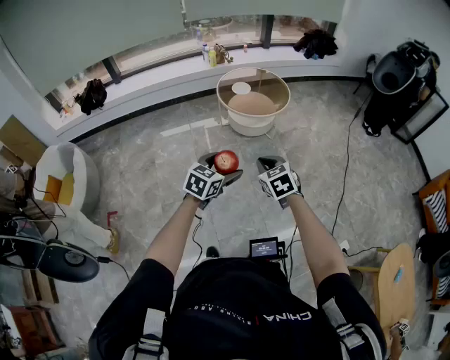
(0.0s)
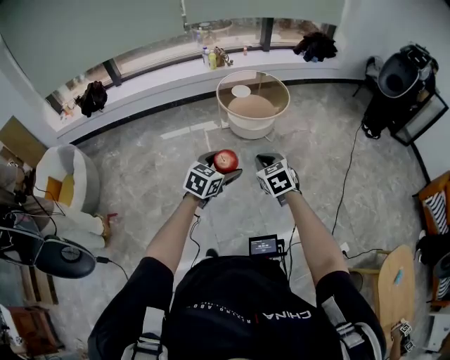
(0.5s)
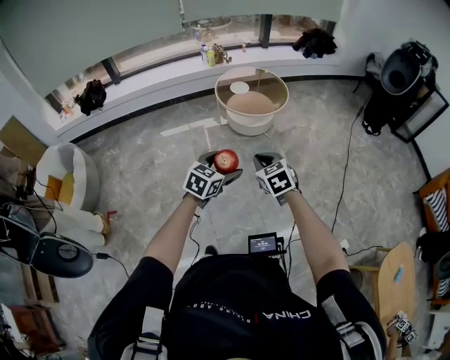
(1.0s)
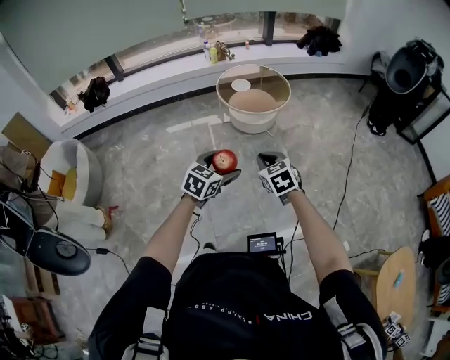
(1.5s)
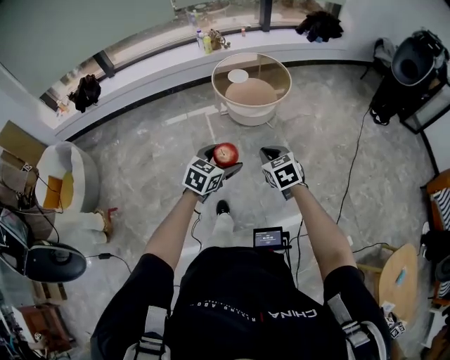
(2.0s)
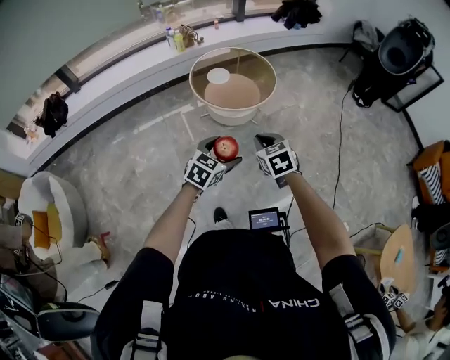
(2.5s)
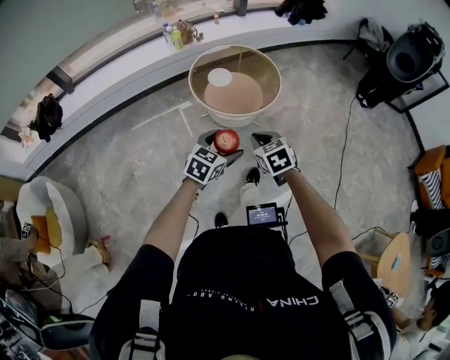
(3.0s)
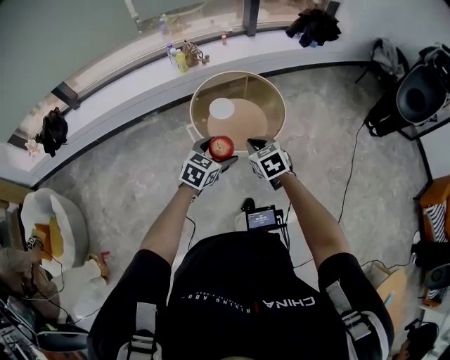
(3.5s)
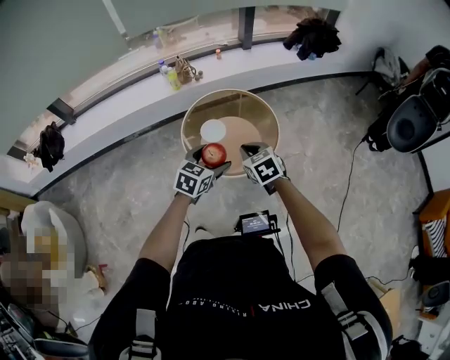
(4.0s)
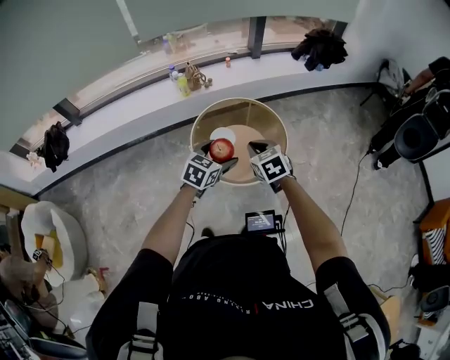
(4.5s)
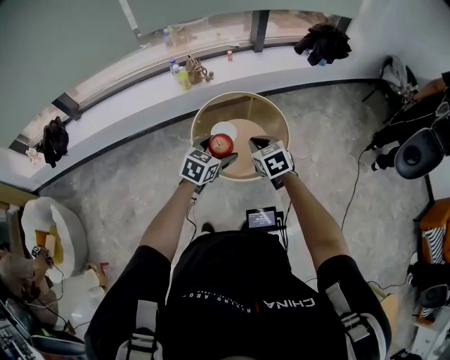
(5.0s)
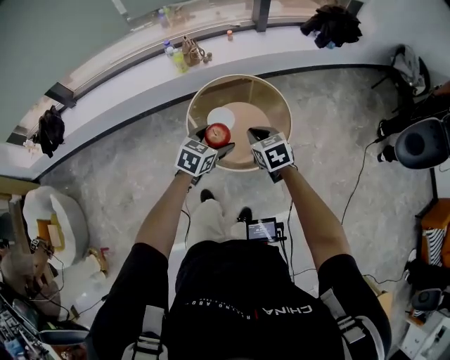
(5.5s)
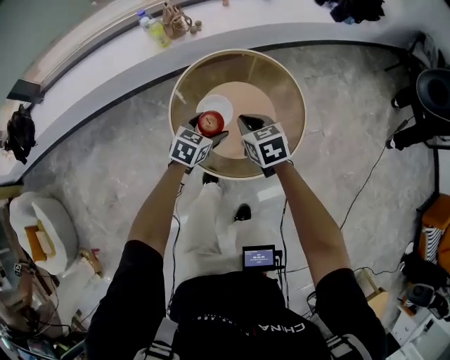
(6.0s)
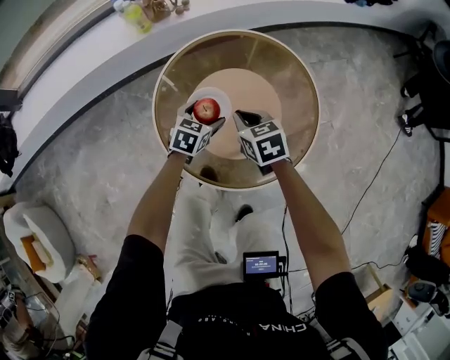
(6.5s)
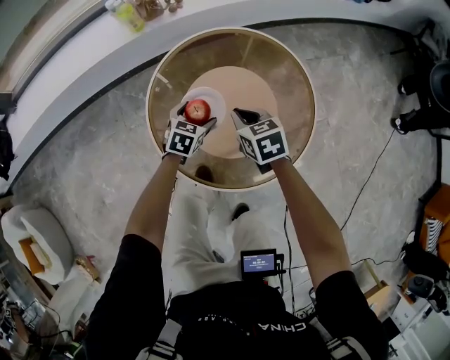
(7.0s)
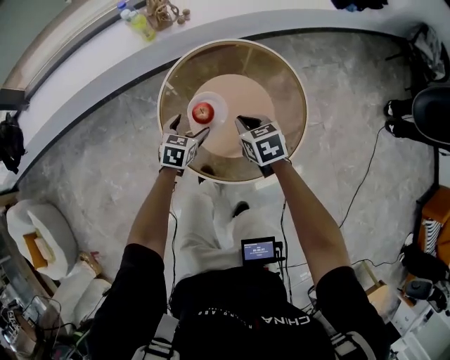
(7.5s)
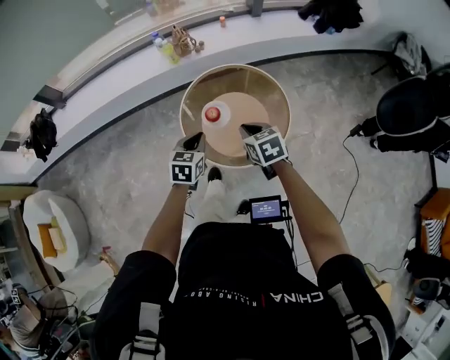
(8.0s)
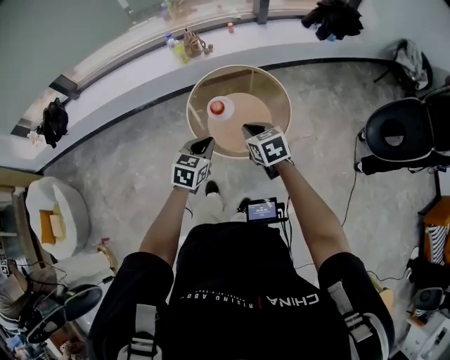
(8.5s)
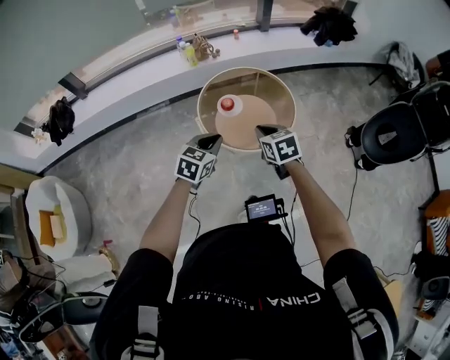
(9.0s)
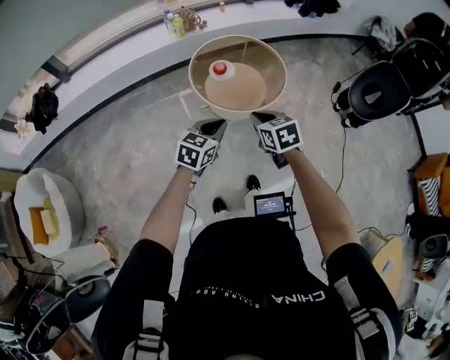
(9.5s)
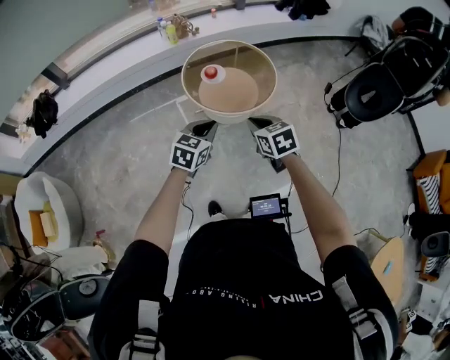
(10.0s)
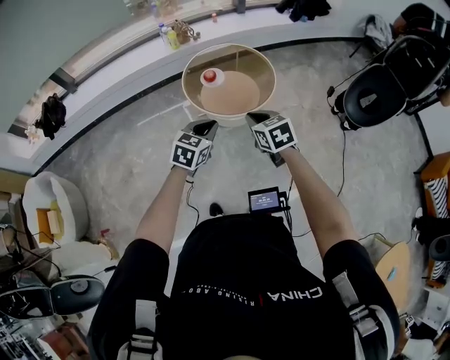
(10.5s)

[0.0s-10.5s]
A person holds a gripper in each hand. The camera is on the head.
0.0s to 2.0s: The right gripper goes approximately 10 cm forward and to the right; the left gripper shifts about 10 cm forward.
2.0s to 4.0s: Both grippers are carried forward, approximately 60 cm.
4.0s to 6.5s: Both grippers move downward and forward, roughly 60 cm.
6.5s to 8.5s: Both grippers move upward and backward, about 50 cm. The left gripper closes up.
8.5s to 10.5s: Both grippers travel together backward, roughly 25 cm.

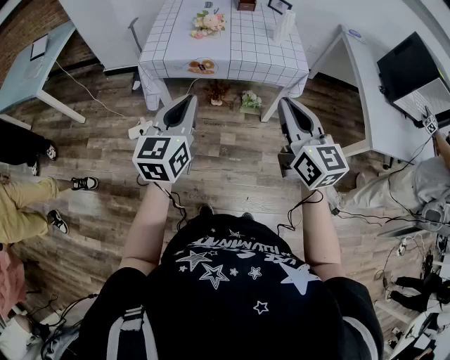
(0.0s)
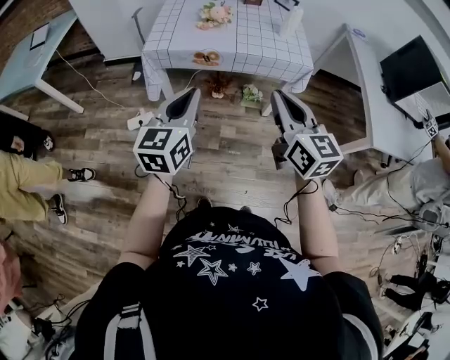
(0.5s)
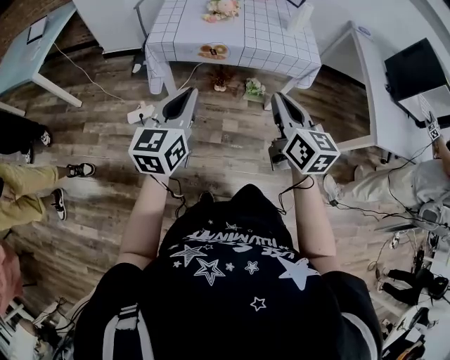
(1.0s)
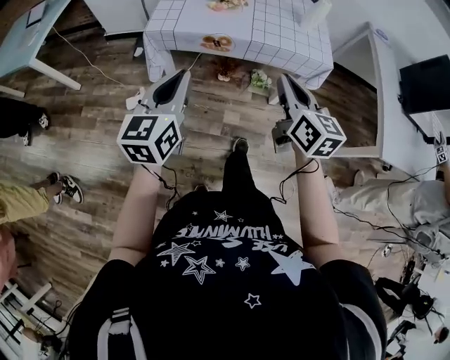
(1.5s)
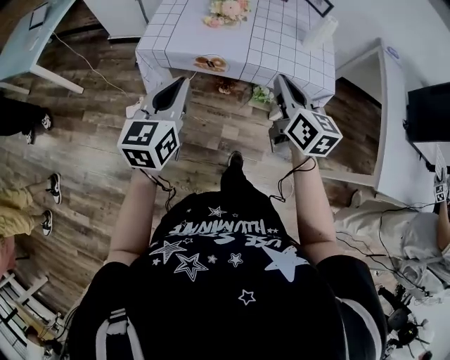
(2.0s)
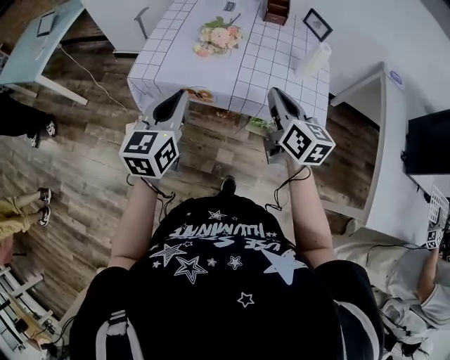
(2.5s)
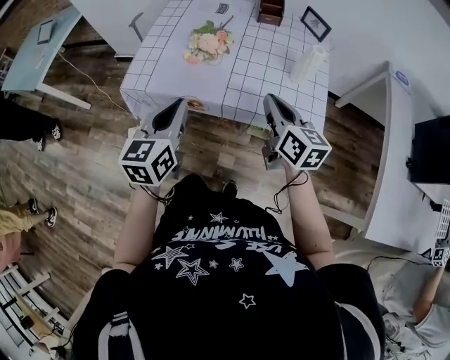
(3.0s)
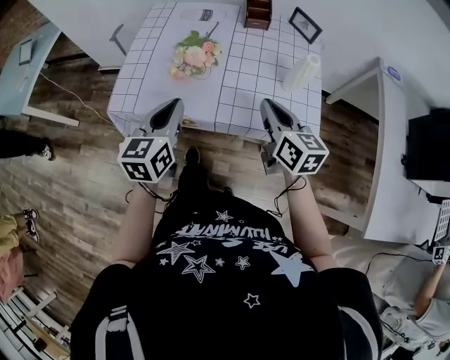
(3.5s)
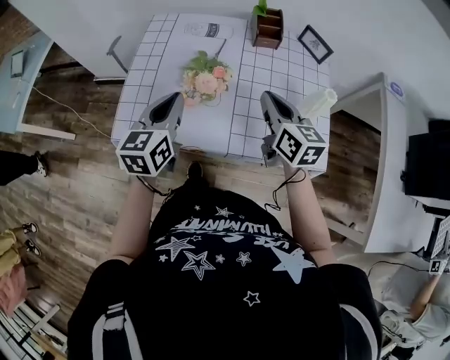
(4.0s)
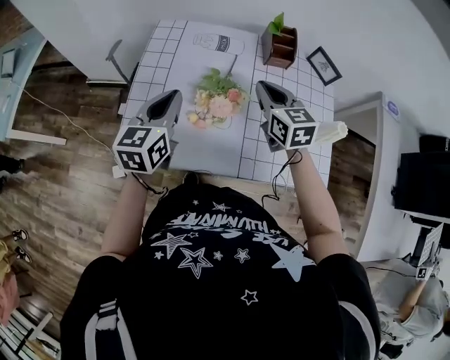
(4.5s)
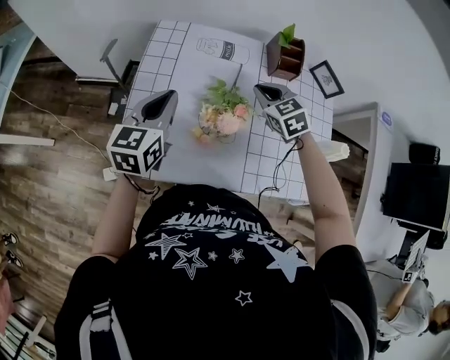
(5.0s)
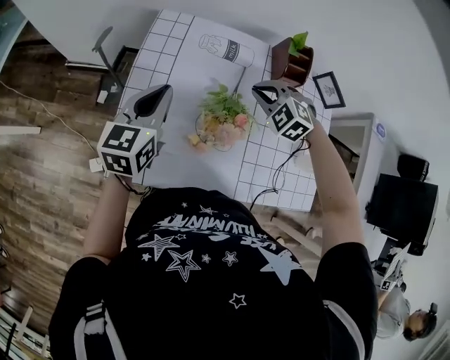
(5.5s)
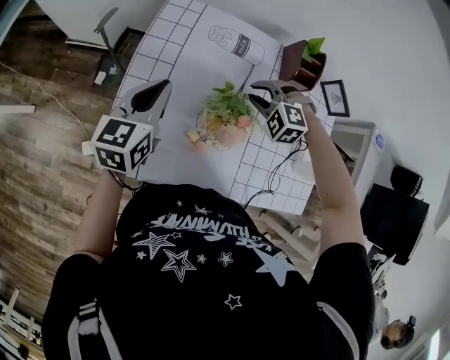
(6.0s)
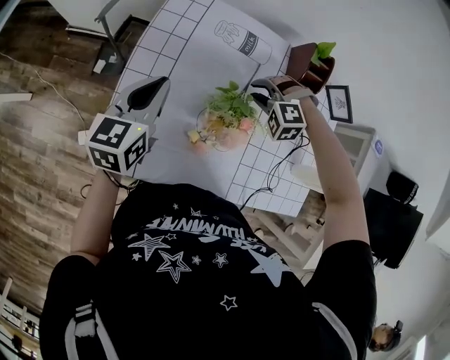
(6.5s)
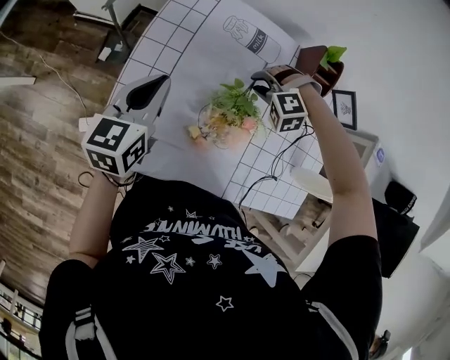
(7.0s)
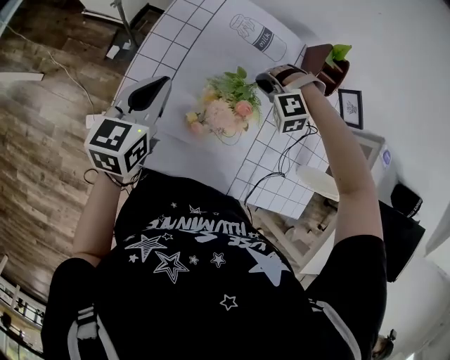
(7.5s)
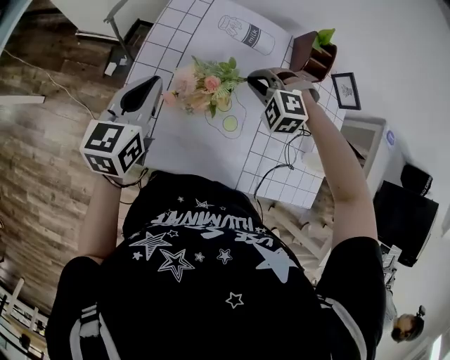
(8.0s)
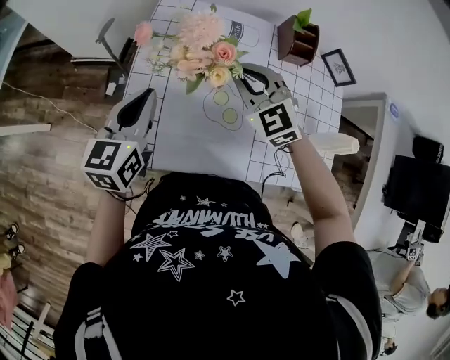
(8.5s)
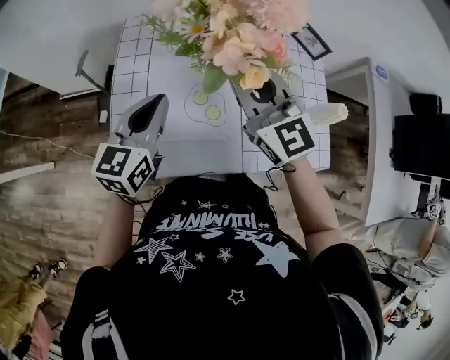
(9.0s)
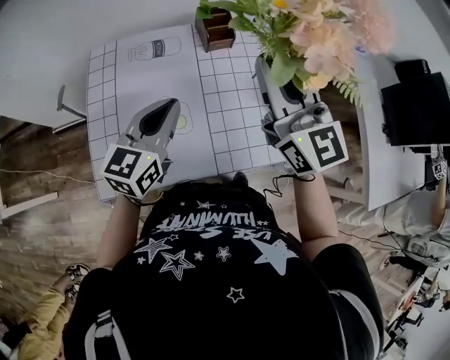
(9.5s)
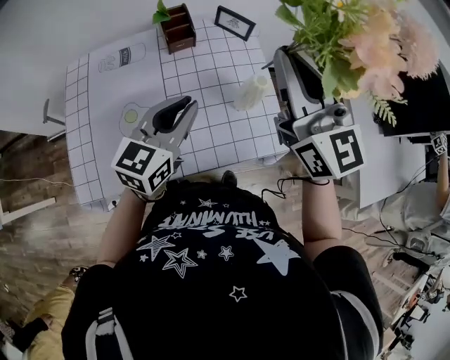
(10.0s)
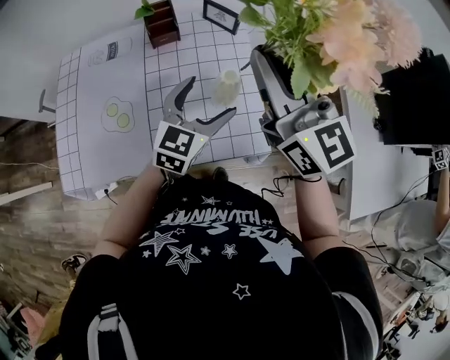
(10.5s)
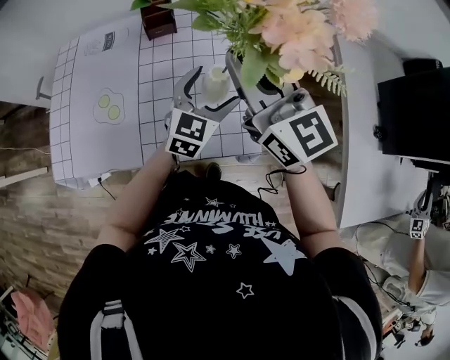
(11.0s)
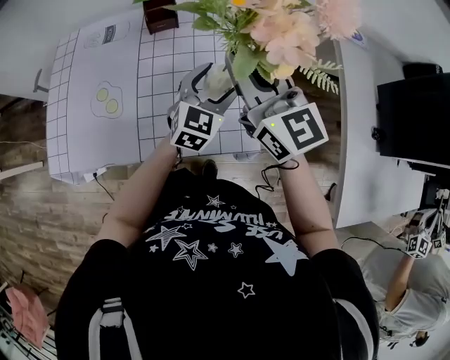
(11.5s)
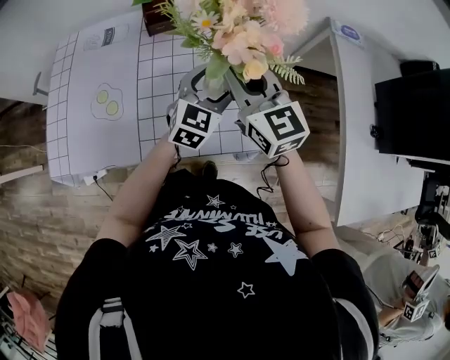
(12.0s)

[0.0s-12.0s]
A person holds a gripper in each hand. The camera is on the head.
0.0s to 2.0s: Both grippers travel together forward, approximately 20 cm.
2.0s to 4.0s: The grippers both shift forward by about 30 cm.
4.0s to 6.0s: The left gripper moves forward and to the left, roughly 20 cm, while the right gripper travels forward, downward and to the left by some 25 cm, twists about 90 degrees counterclockwise, seen from behind, and opens up.
8.0s to 10.0s: The left gripper changes place by about 40 cm, and rotates about 40 degrees; the right gripper shifts approximately 35 cm upward, and tips its fingers upward by roughly 70 degrees.
10.0s to 12.0s: The right gripper travels downward by about 15 cm, and turns by approximately 20 degrees. The left gripper heads to the right and downward, covering approximately 20 cm, swivels approximately 20 degrees, and opens.

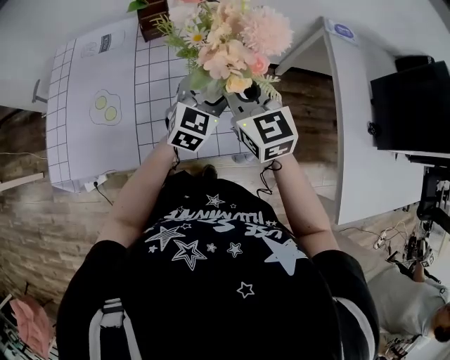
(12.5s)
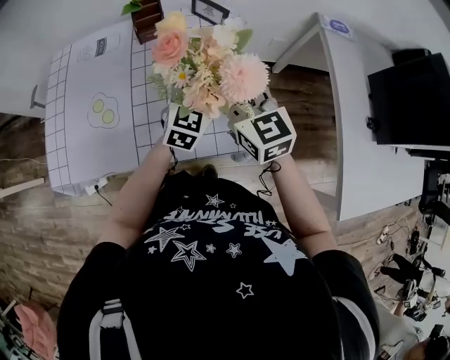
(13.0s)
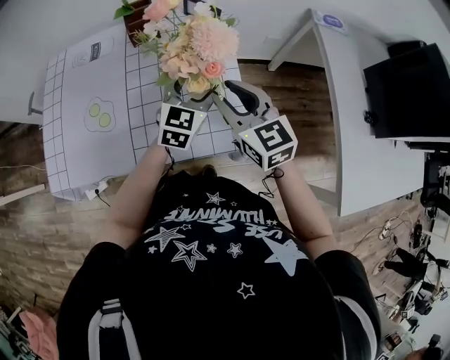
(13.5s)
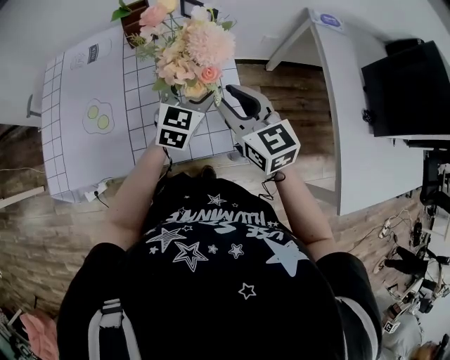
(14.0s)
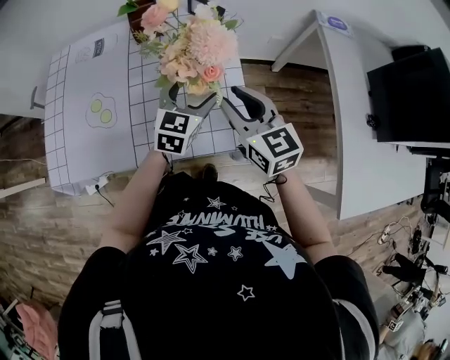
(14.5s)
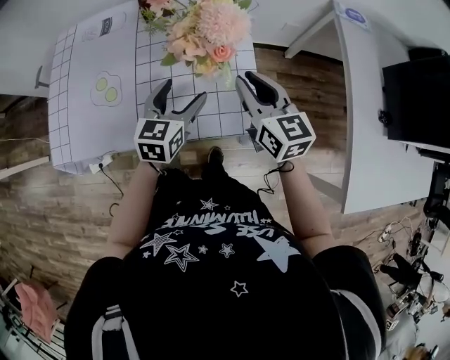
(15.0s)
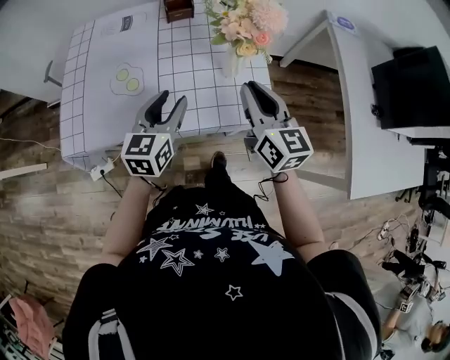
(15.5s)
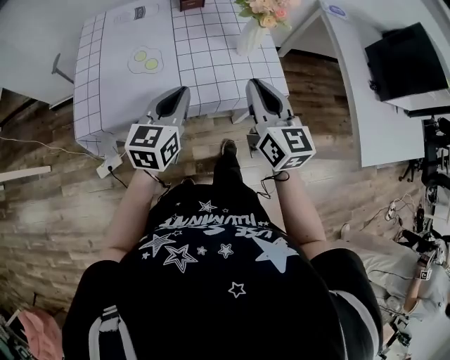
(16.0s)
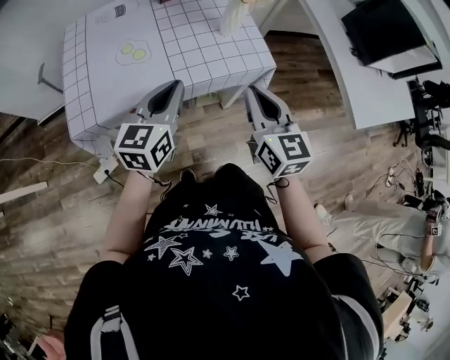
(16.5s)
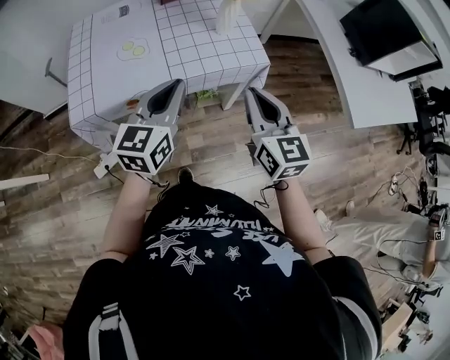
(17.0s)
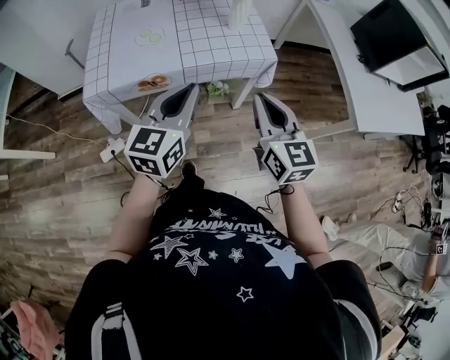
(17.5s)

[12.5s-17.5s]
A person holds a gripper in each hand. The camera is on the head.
12.5s to 15.0s: The right gripper goes approximately 5 cm to the right. The left gripper travels to the left and backward by about 10 cm, and turns by about 20 degrees.
15.0s to 17.5s: The right gripper shifts about 40 cm backward. The left gripper goes approximately 35 cm backward and upward, changes its angle by about 20 degrees, and closes.
